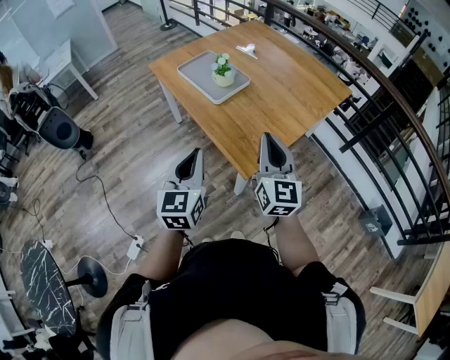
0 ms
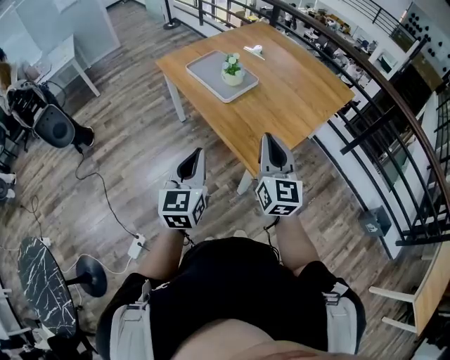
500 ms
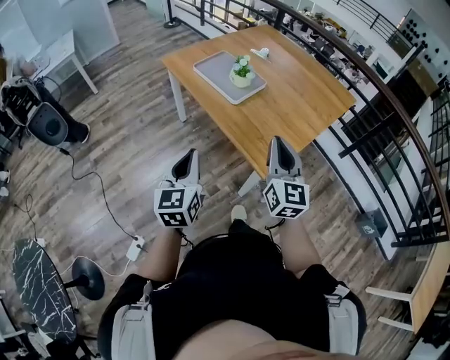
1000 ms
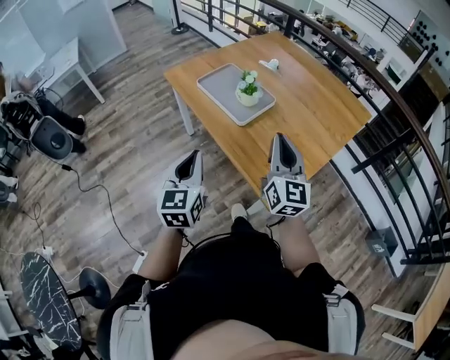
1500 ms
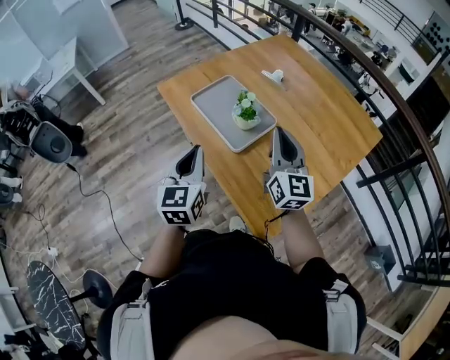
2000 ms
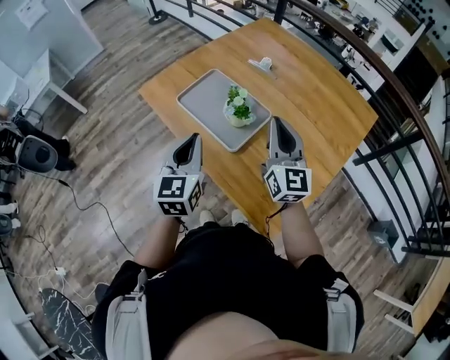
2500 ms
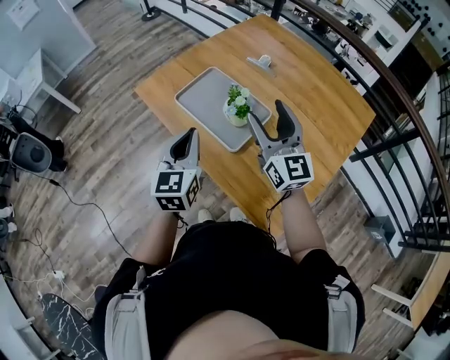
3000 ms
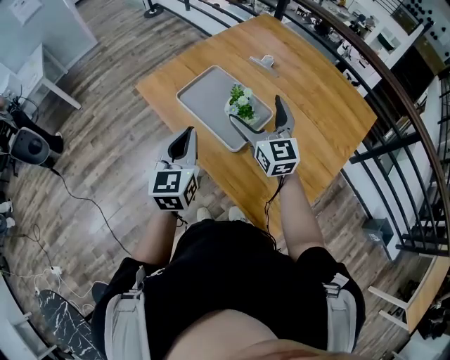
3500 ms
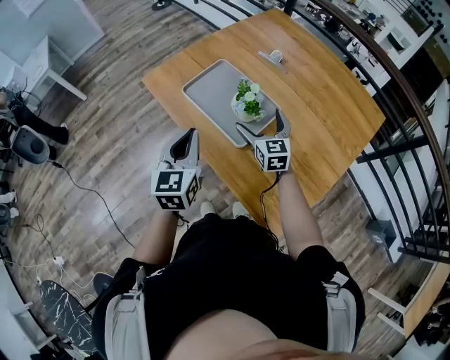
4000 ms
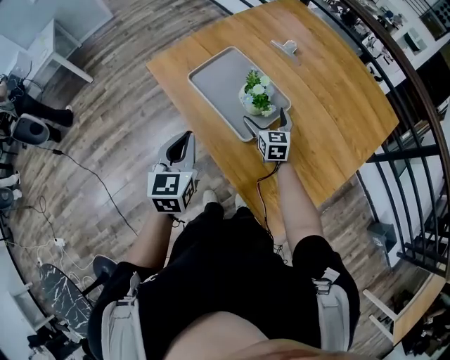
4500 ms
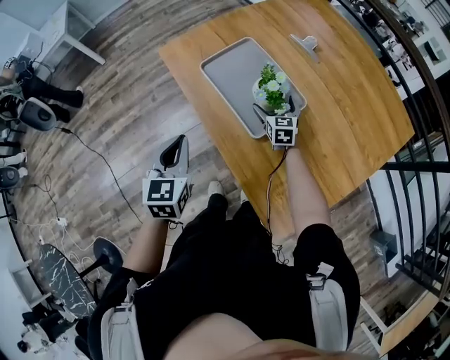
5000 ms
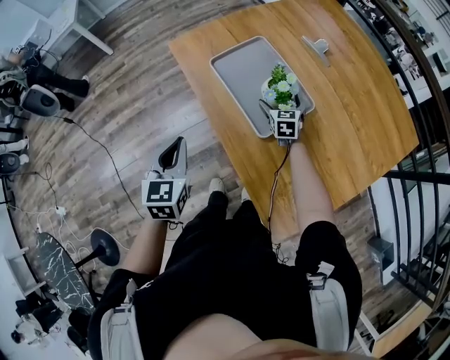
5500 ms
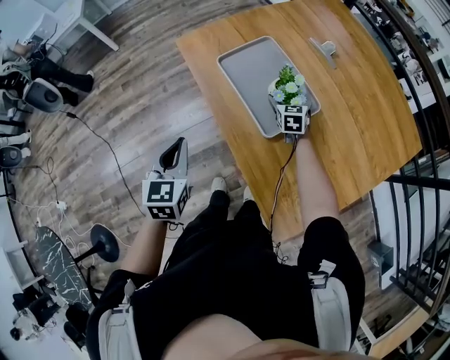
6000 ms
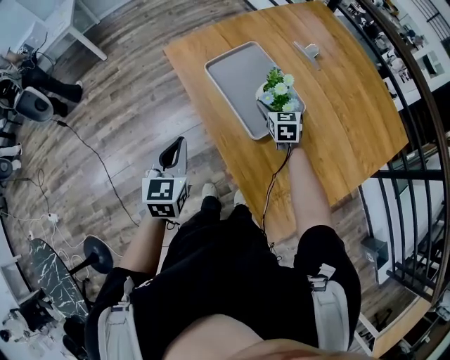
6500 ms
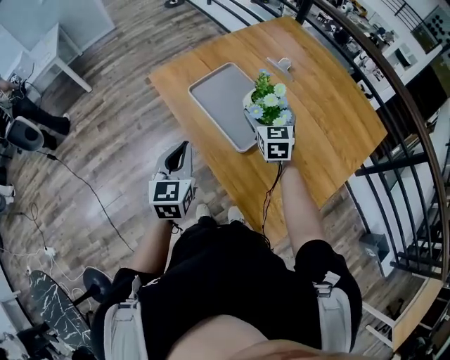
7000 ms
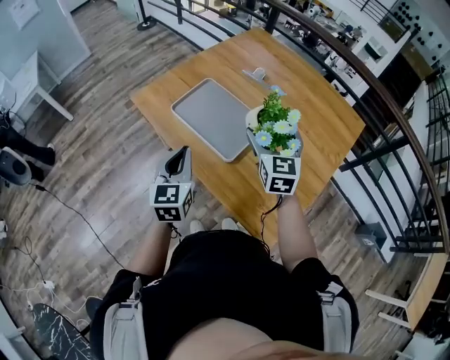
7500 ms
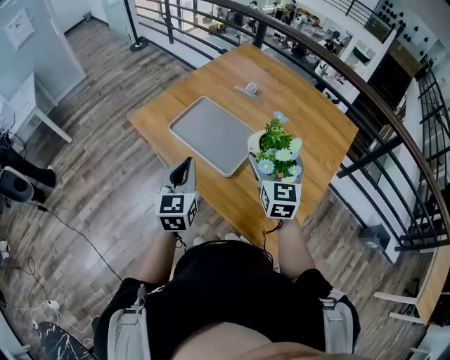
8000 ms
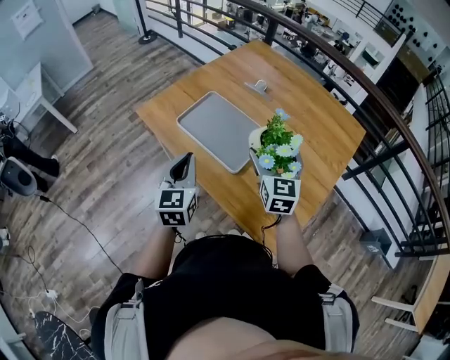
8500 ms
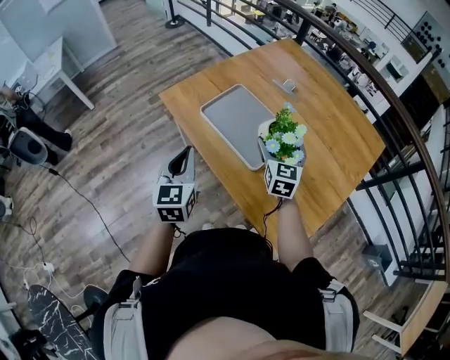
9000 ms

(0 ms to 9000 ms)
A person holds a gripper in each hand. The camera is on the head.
0 ms - 2000 ms: The two grippers go about 30 cm forward.
2000 ms - 4500 ms: The right gripper heads downward and forward, covering approximately 35 cm, tips its fingers downward by some 30 degrees, and opens up. The left gripper travels forward, downward and to the left by approximately 15 cm.
4500 ms - 7000 ms: The right gripper moves upward, some 15 cm.
7000 ms - 9000 ms: The right gripper heads backward, covering roughly 5 cm; the left gripper heads to the left, covering some 5 cm.

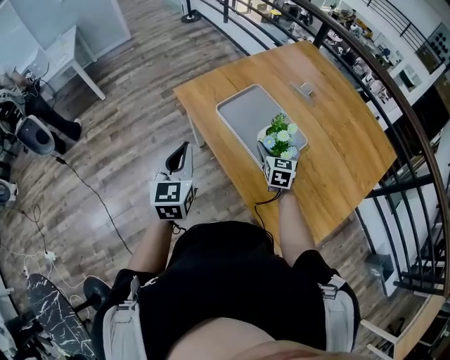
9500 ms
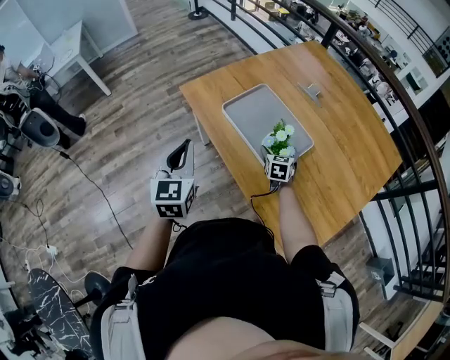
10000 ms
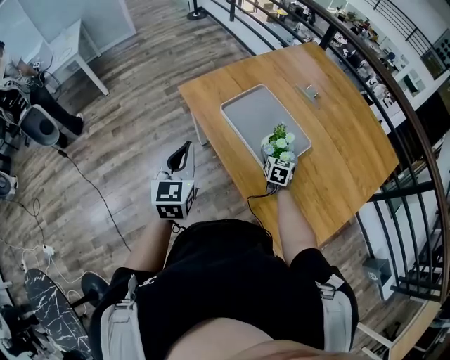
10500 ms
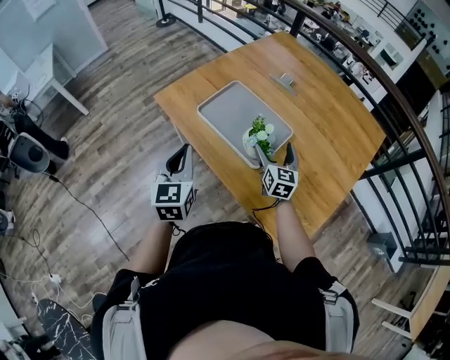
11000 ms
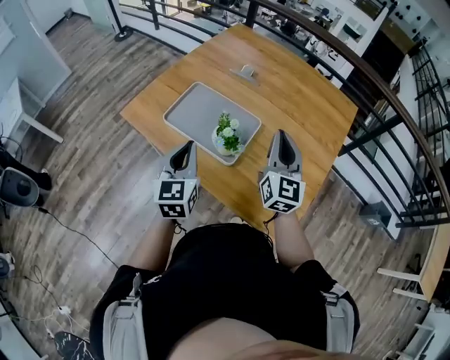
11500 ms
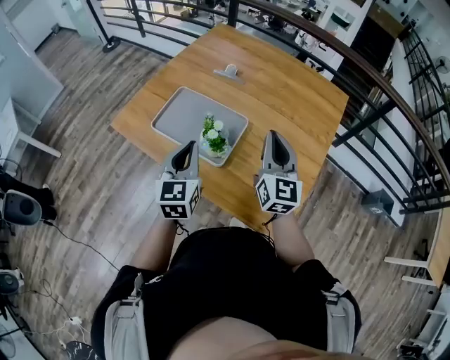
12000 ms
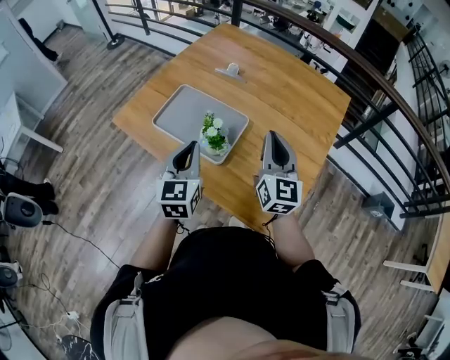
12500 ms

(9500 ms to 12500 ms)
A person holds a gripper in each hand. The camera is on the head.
9500 ms - 11000 ms: The right gripper goes downward and returns, some 10 cm each way.
11000 ms - 12500 ms: The right gripper travels upward, to the right and backward by roughly 25 cm, and closes its fingers; the left gripper is displaced to the right by some 15 cm.

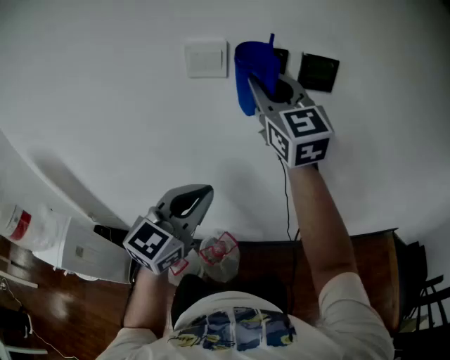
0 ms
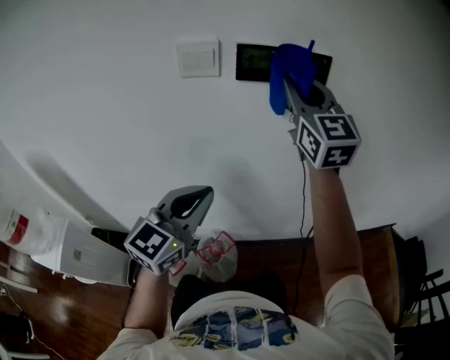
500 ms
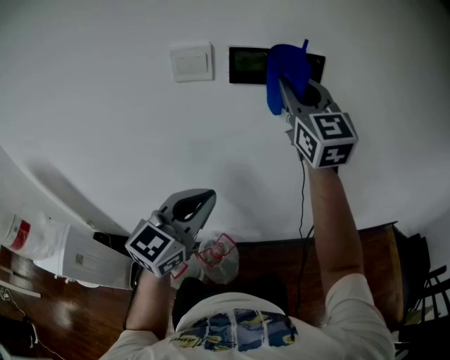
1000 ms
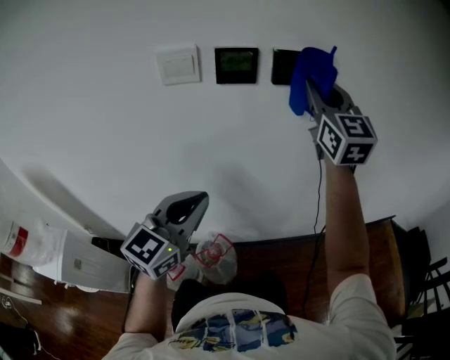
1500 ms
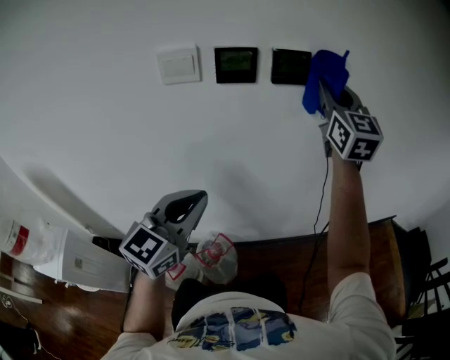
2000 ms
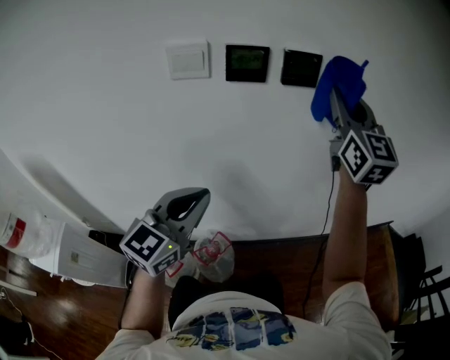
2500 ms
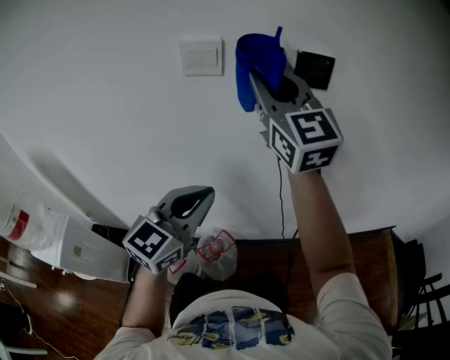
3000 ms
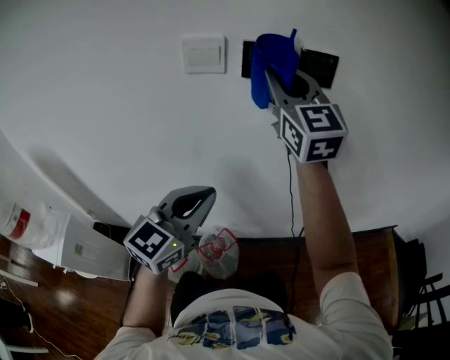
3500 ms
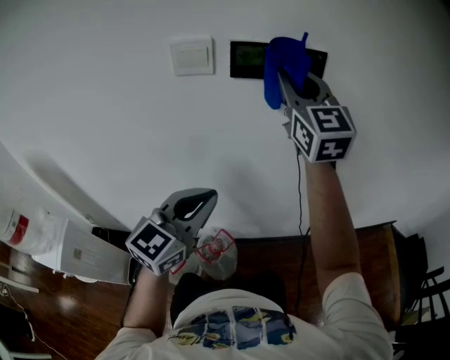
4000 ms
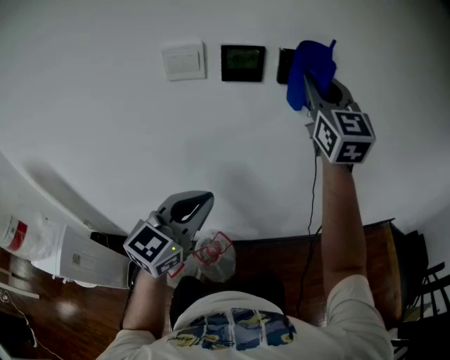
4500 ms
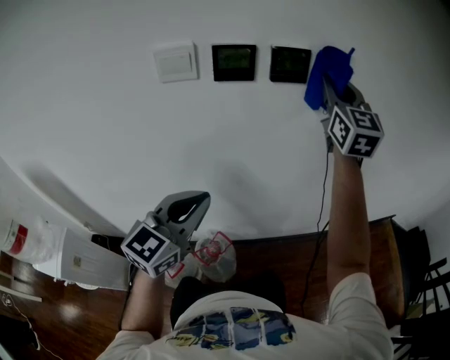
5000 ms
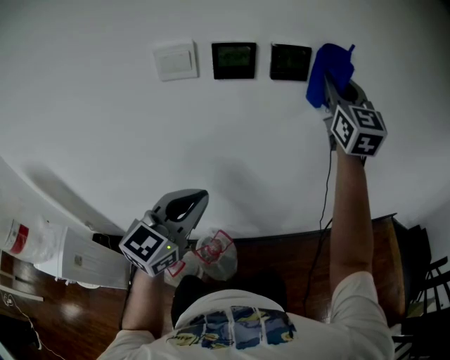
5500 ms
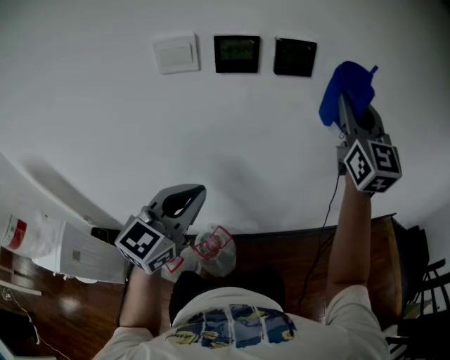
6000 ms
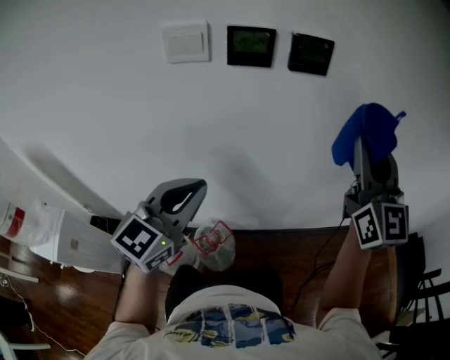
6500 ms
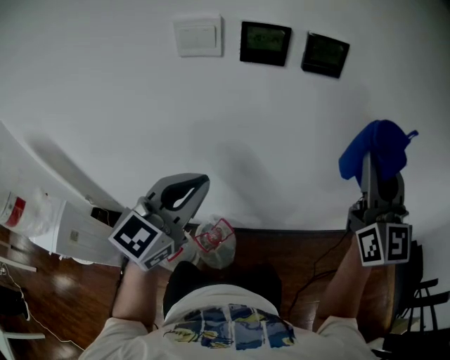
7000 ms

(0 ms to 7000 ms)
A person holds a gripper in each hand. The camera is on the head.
0 ms - 2000 ms: The right gripper is displaced to the right by roughly 20 cm, and rotates some 20 degrees.
2000 ms - 3500 ms: The right gripper shifts approximately 20 cm to the left.
3500 ms - 5000 ms: The right gripper heads to the right, covering some 20 cm.
5000 ms - 7000 ms: The right gripper travels backward and downward by some 15 cm.

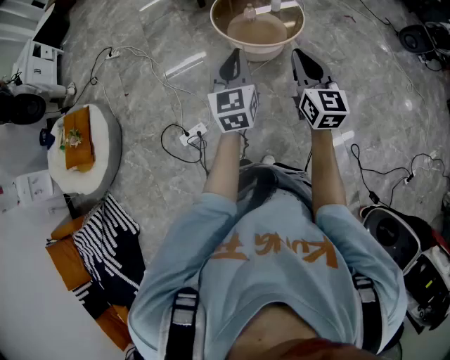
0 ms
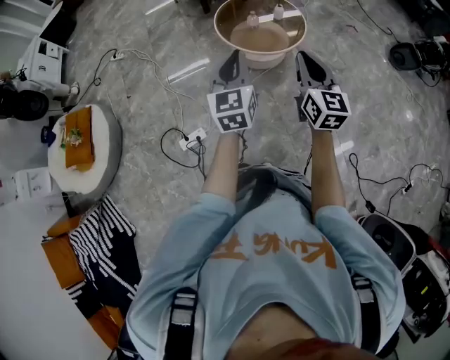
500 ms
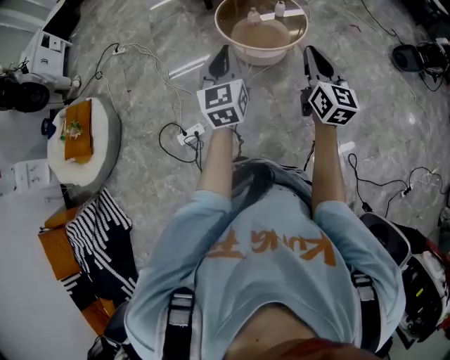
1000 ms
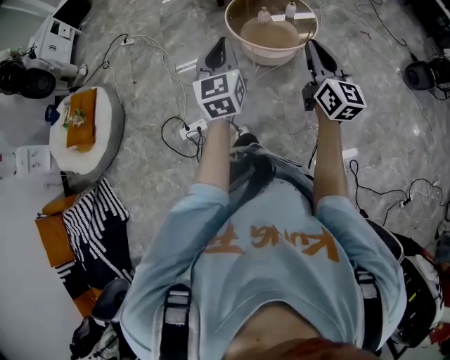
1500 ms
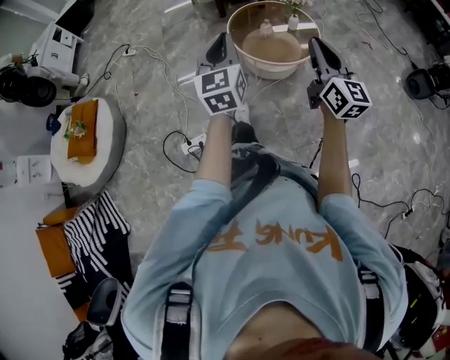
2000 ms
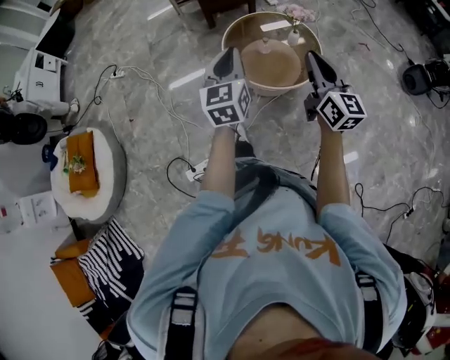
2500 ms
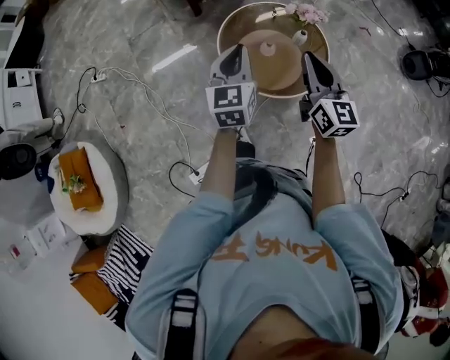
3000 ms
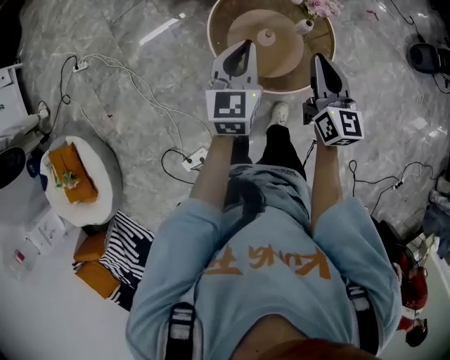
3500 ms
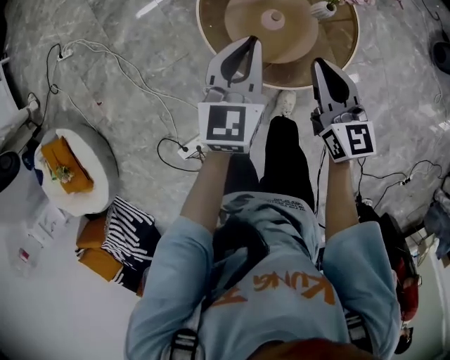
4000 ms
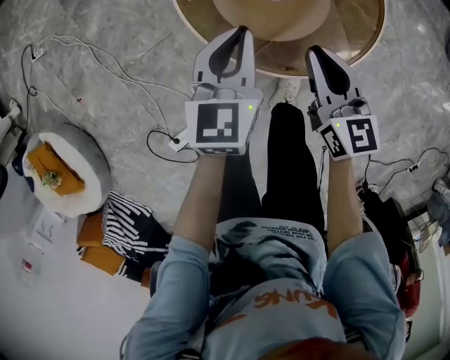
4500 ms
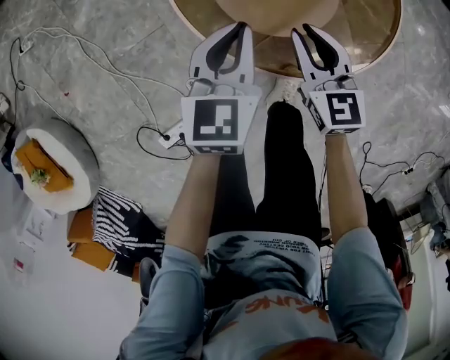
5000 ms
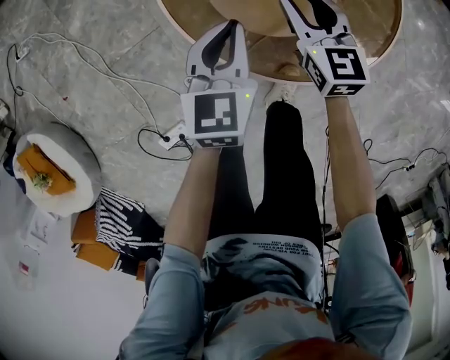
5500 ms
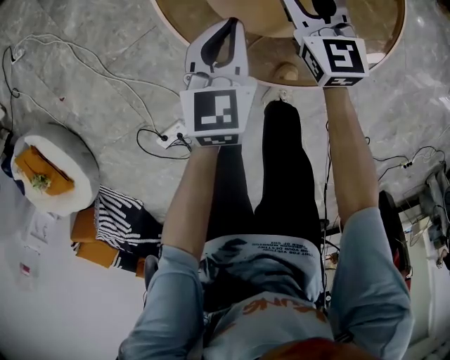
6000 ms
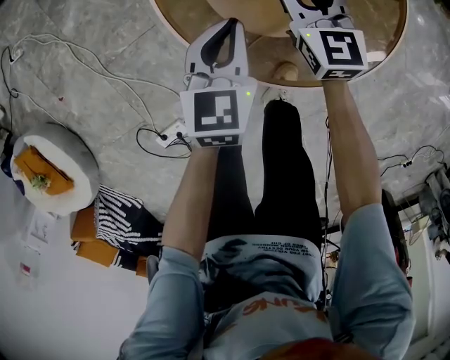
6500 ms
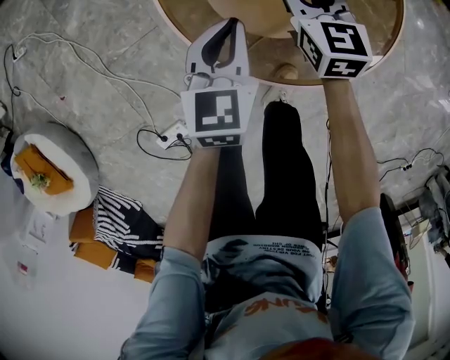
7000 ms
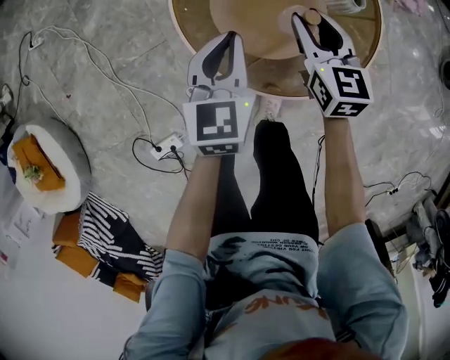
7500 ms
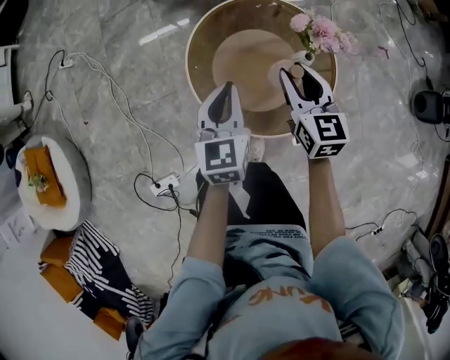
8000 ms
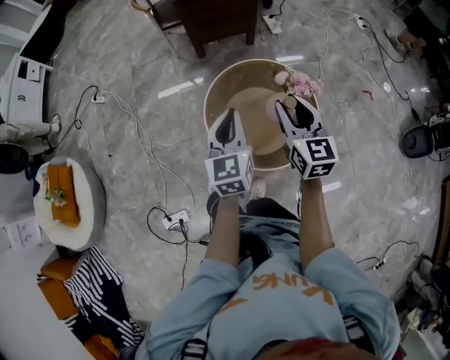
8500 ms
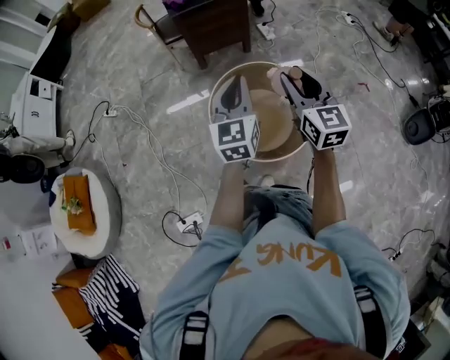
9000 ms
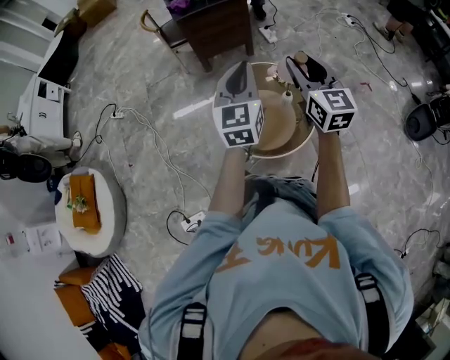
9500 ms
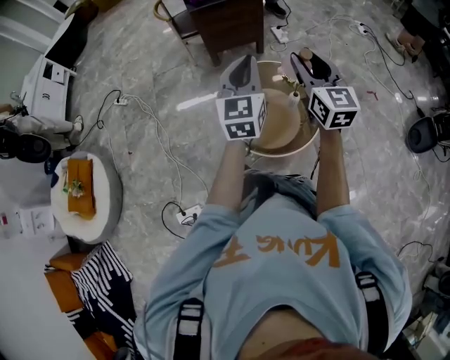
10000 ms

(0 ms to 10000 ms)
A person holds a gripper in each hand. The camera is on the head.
0 ms - 2000 ms: Both grippers move forward, about 10 cm.
2000 ms - 4000 ms: Both grippers are carried forward, approximately 50 cm. The grippers both shift downward by approximately 30 cm. The right gripper rotates approximately 30 degrees. Meanwhile the left gripper changes its angle by some 30 degrees.
4000 ms - 6000 ms: The right gripper shifts roughly 30 cm downward and forward, and opens its fingers. Meanwhile the left gripper travels downward by roughly 30 cm.
6000 ms - 8000 ms: Both grippers travel together upward, roughly 25 cm. The left gripper changes its angle by approximately 20 degrees.
8000 ms - 10000 ms: Both grippers move upward, approximately 35 cm. The right gripper turns by approximately 20 degrees, while the left gripper turns by roughly 20 degrees.
